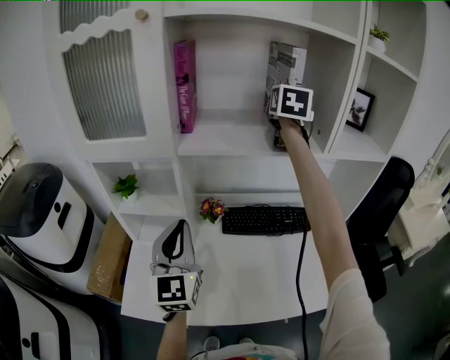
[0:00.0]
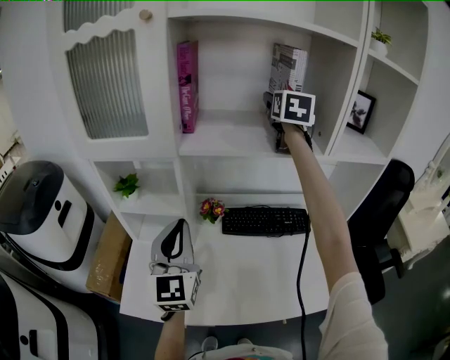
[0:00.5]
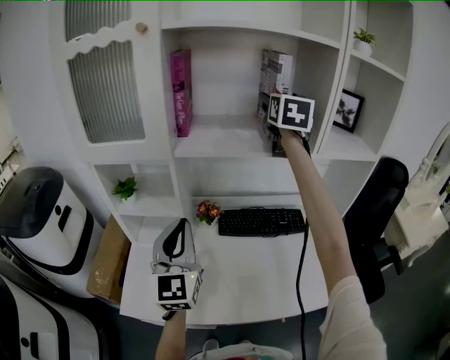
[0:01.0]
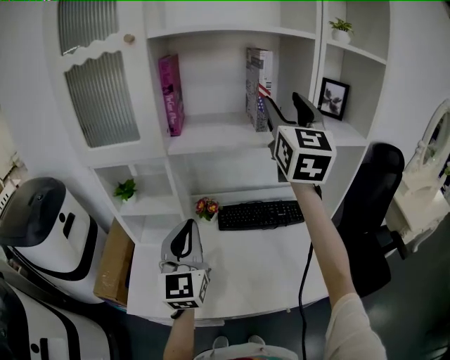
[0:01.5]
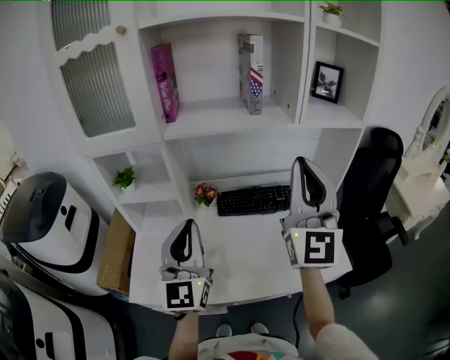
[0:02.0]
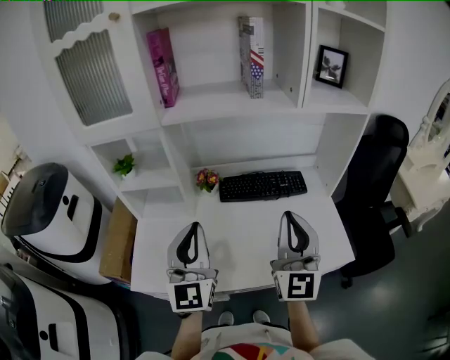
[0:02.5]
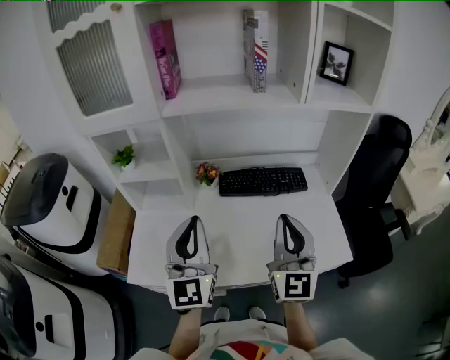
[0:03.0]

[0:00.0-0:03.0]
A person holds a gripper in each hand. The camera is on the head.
0:00.0 to 0:01.5: The left gripper changes place by about 5 cm, while the right gripper shifts some 20 cm backward, and turns by about 30 degrees.
0:01.5 to 0:03.0: The right gripper heads downward and backward, covering about 35 cm, and closes up; the left gripper shifts about 5 cm backward.

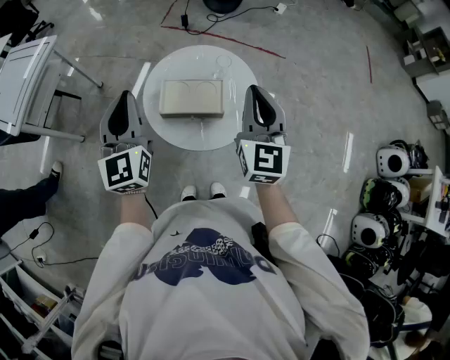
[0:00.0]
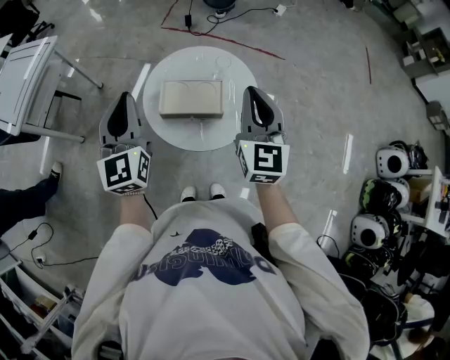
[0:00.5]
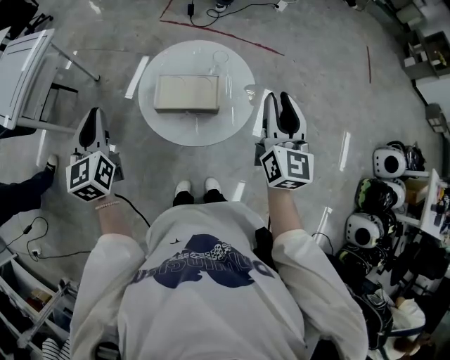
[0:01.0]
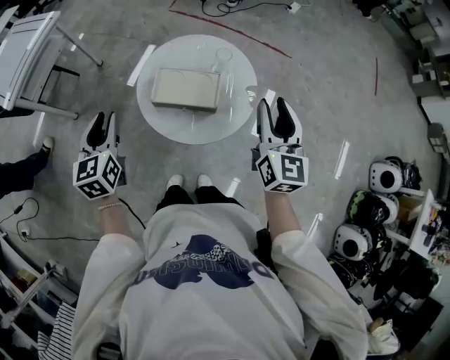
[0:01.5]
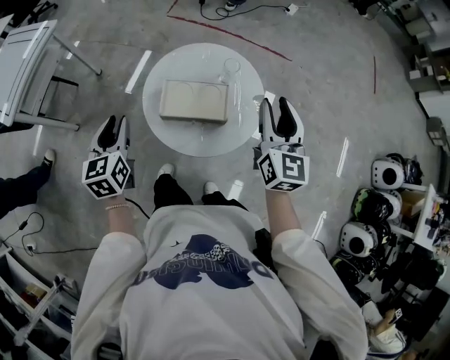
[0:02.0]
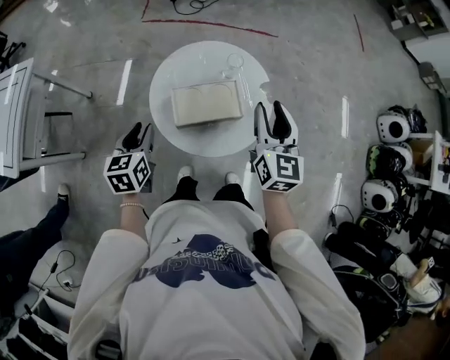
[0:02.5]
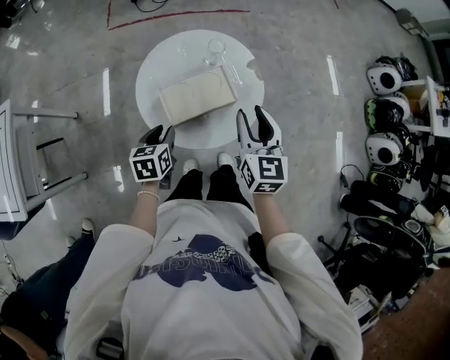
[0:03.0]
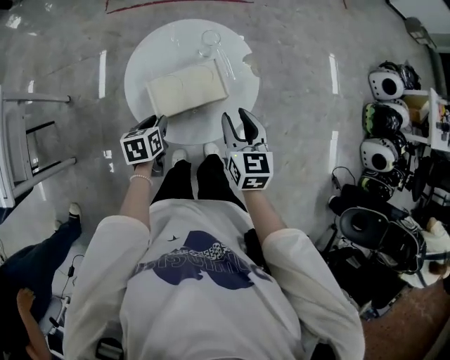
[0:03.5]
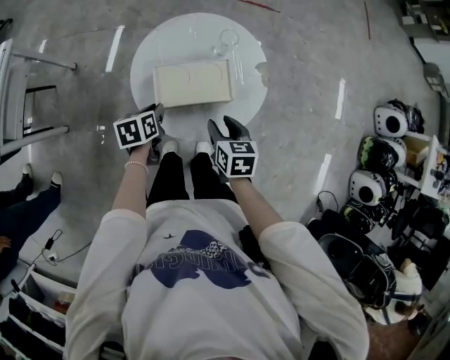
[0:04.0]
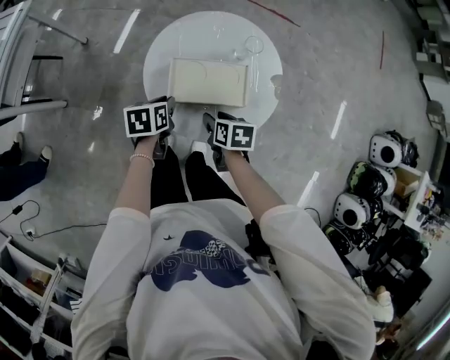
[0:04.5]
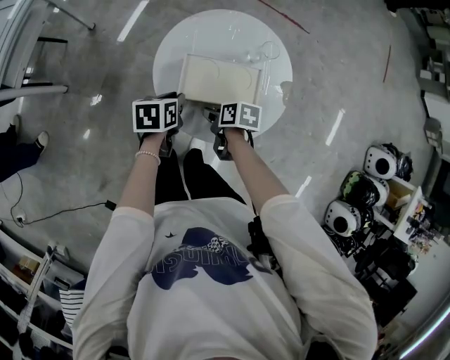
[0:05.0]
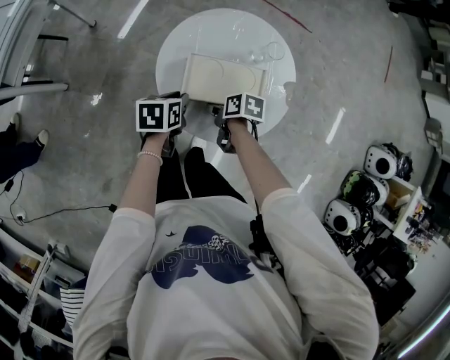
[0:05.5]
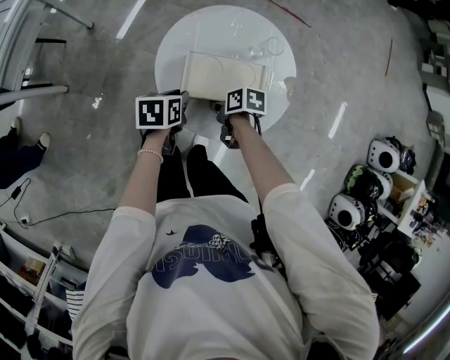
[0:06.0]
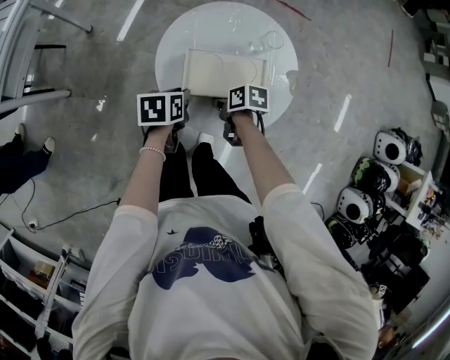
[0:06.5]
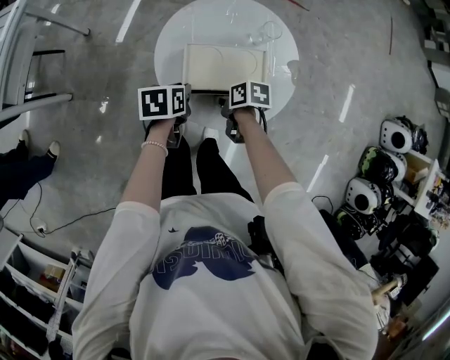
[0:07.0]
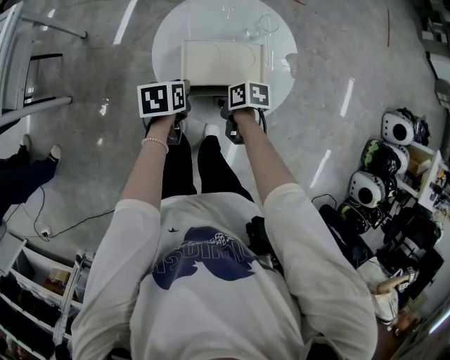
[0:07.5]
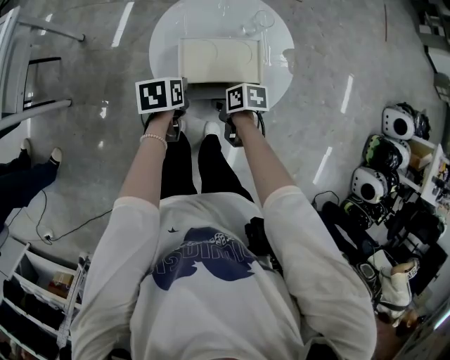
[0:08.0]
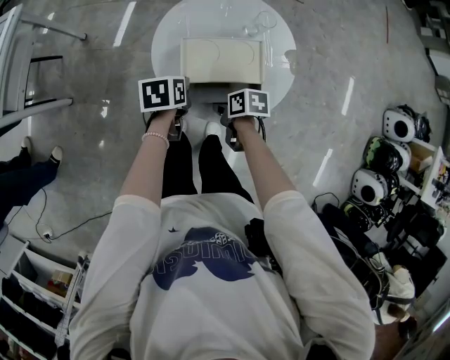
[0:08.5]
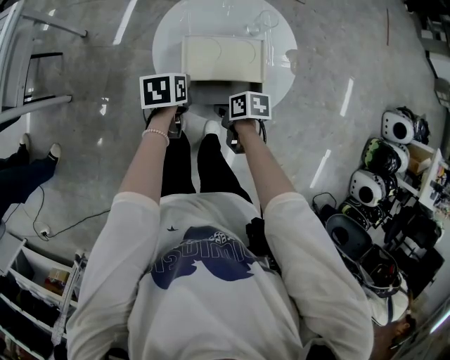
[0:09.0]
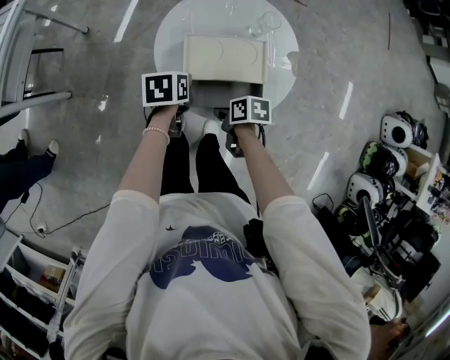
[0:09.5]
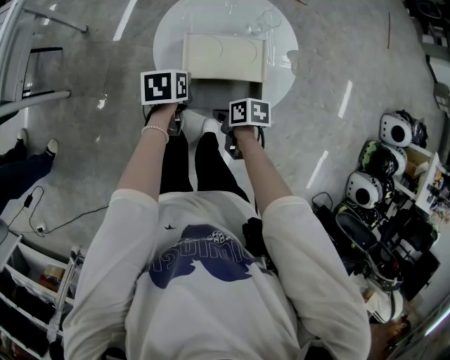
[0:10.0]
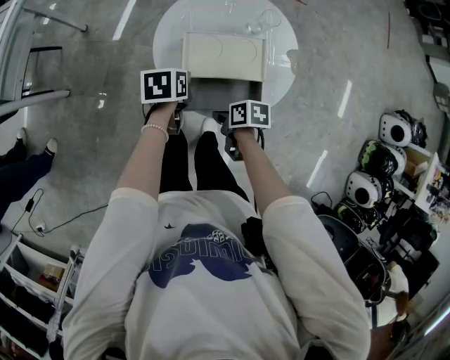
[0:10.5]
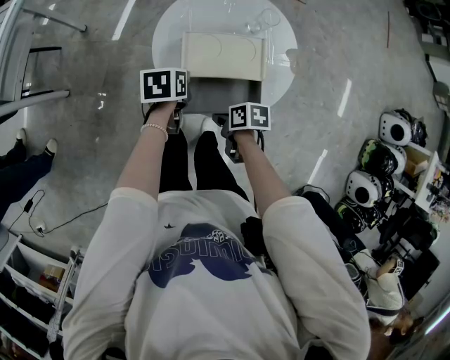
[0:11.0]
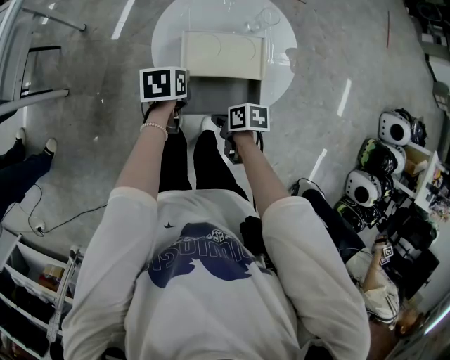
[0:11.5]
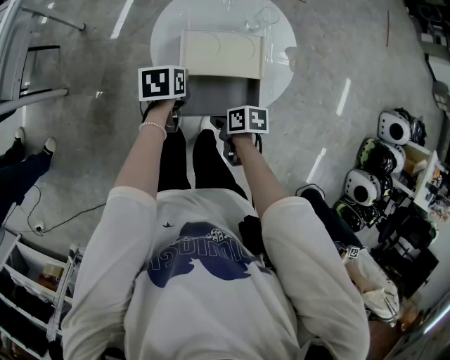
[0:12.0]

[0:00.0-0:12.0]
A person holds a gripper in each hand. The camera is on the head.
0:00.0 to 0:02.0: The left gripper heads downward and to the left, covering some 15 cm, rotates roughly 30 degrees, and opens. Meanwhile the right gripper shifts by roughly 5 cm, and opens up.
0:02.0 to 0:04.0: The grippers both shift downward by approximately 25 cm. The left gripper swivels about 40 degrees, while the right gripper points its fingers approximately 40 degrees further downward.
0:04.0 to 0:06.0: The right gripper moves downward, roughly 10 cm, changes its angle by approximately 40 degrees, and closes its fingers.
0:06.0 to 0:08.0: The grippers make only small movements.
0:08.0 to 0:10.0: The grippers make only small movements.
0:10.0 to 0:12.0: The grippers stay close to where they were, moving slightly.

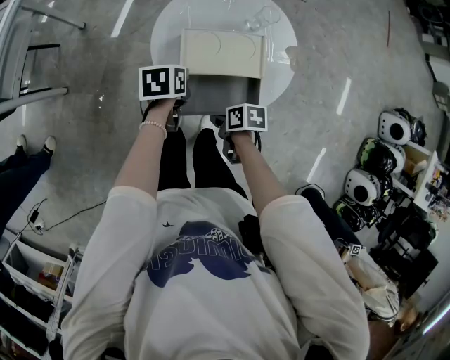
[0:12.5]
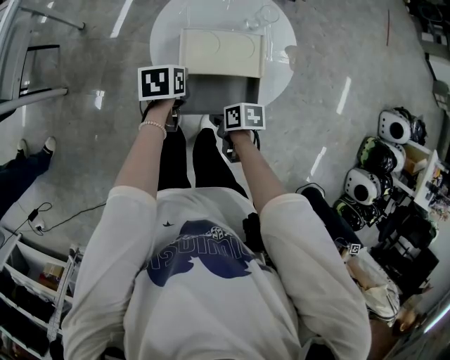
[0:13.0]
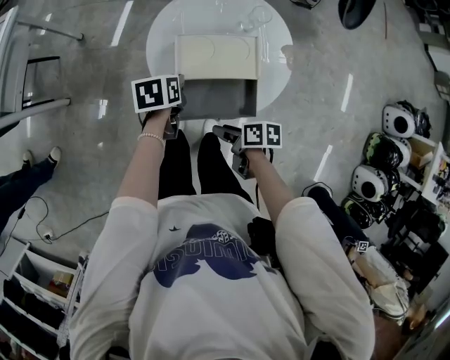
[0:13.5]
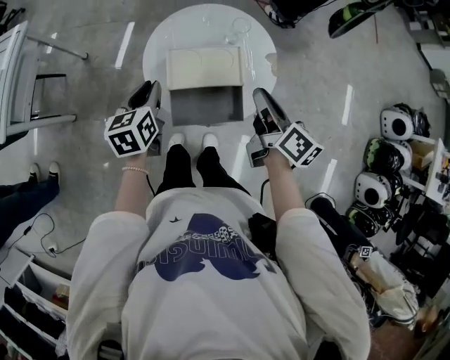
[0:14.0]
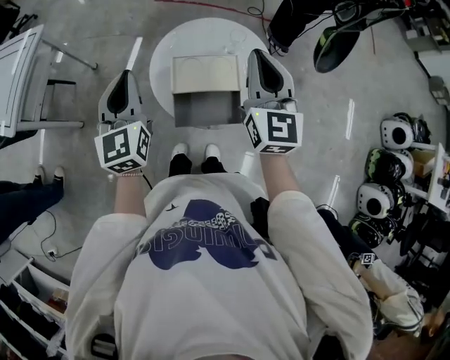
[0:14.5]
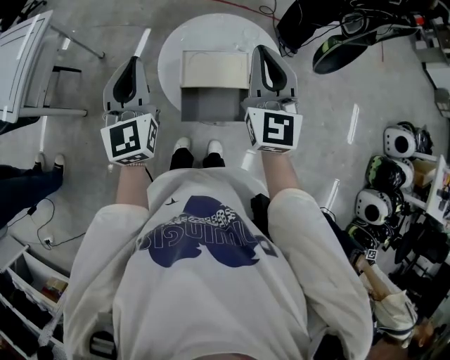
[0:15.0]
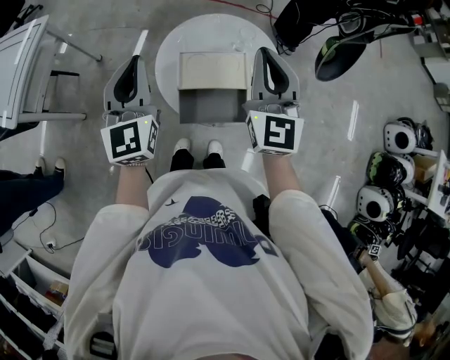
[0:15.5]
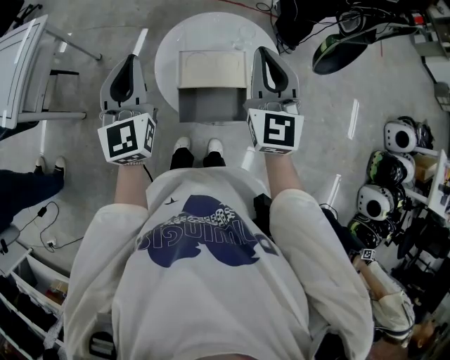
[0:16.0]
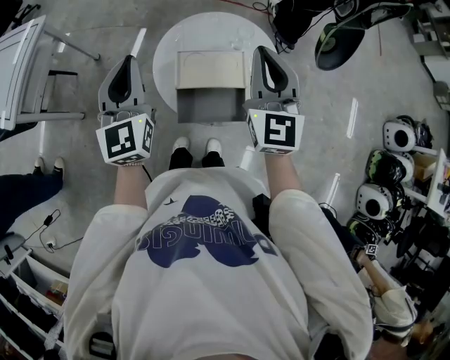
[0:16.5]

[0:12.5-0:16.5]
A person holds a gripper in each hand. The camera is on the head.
0:12.5 to 0:14.5: Both grippers move upward, some 35 cm. The right gripper tips its fingers upward by roughly 60 degrees, and opens, then closes once more. Meanwhile the left gripper tilts its fingers approximately 50 degrees upward.
0:14.5 to 0:16.5: The grippers move only a little.

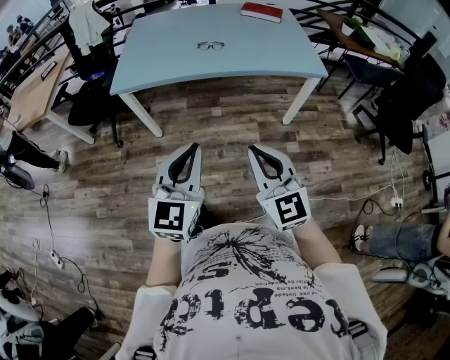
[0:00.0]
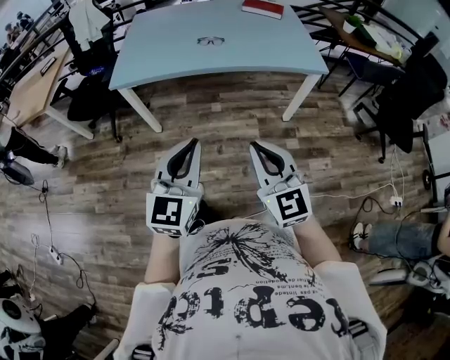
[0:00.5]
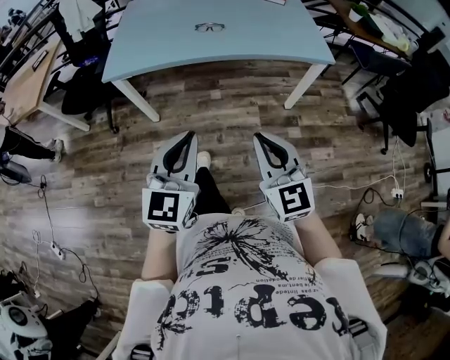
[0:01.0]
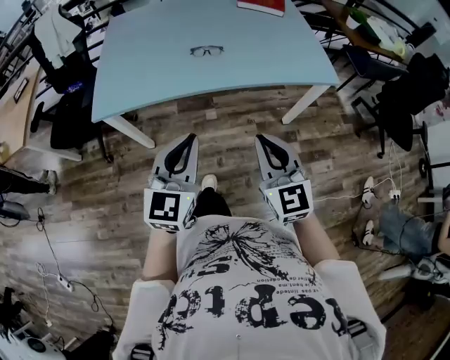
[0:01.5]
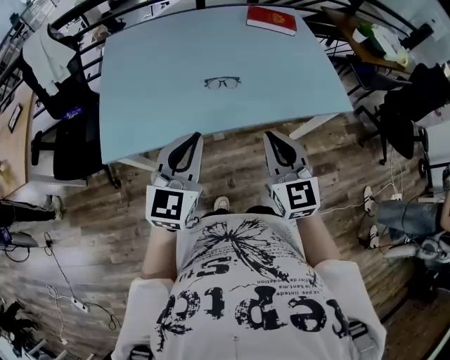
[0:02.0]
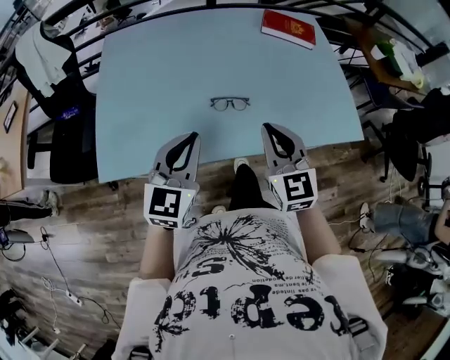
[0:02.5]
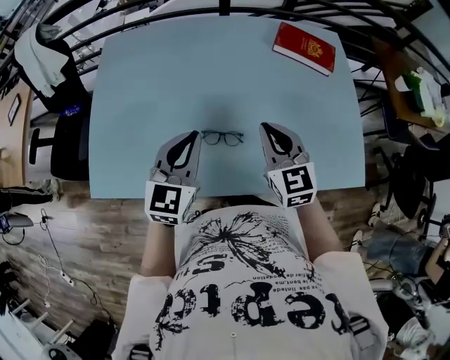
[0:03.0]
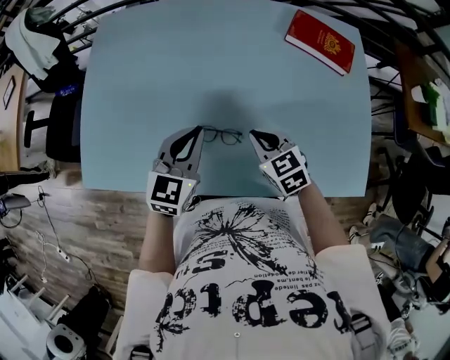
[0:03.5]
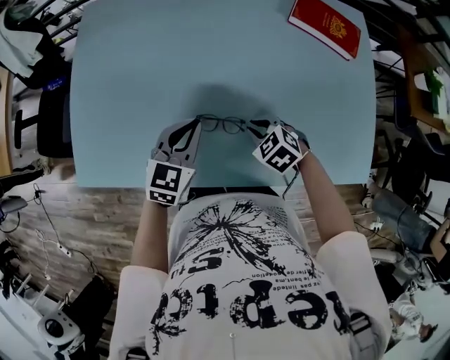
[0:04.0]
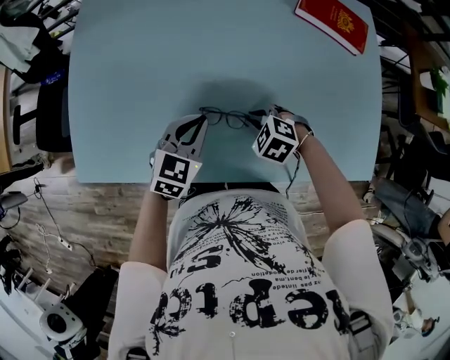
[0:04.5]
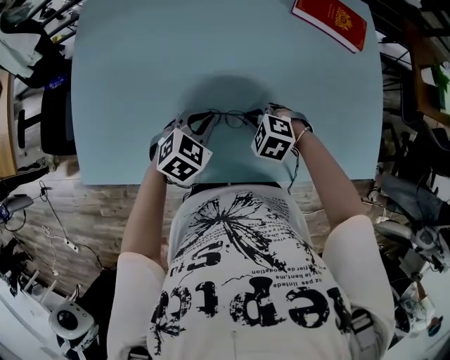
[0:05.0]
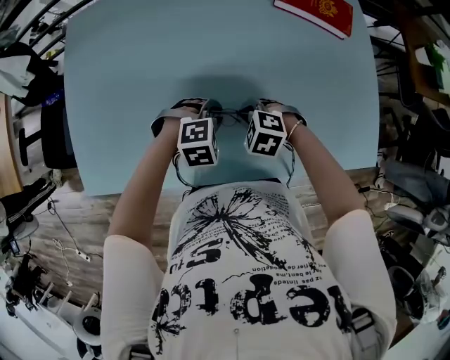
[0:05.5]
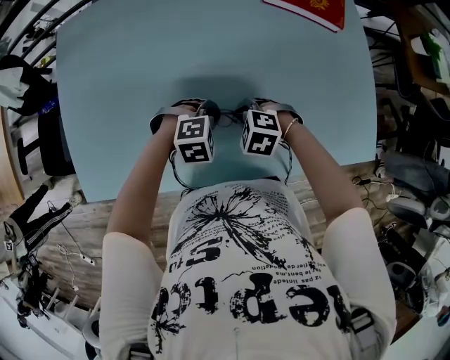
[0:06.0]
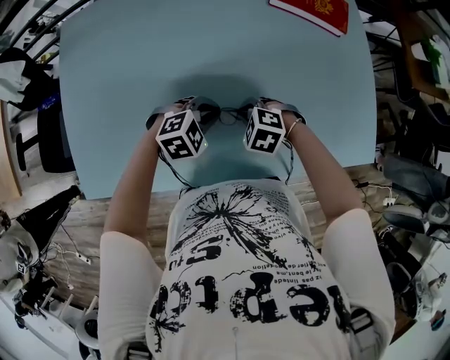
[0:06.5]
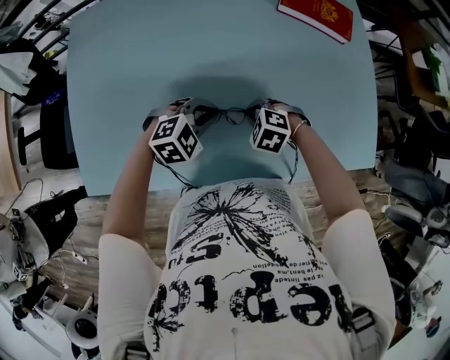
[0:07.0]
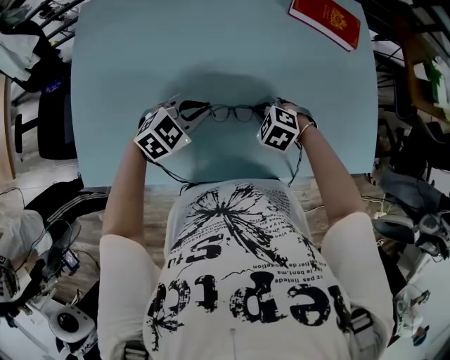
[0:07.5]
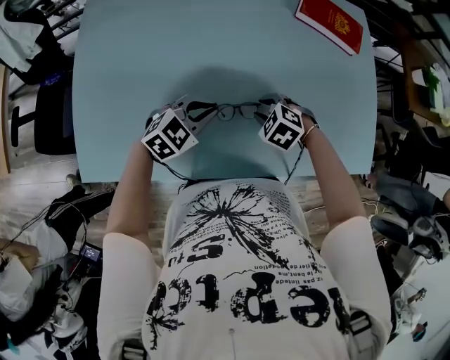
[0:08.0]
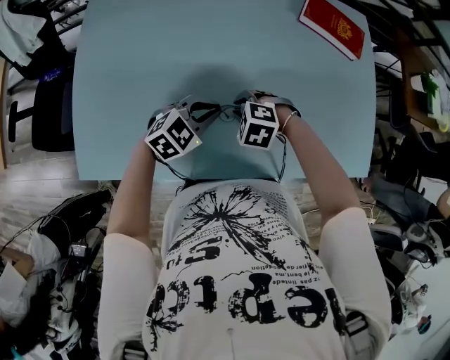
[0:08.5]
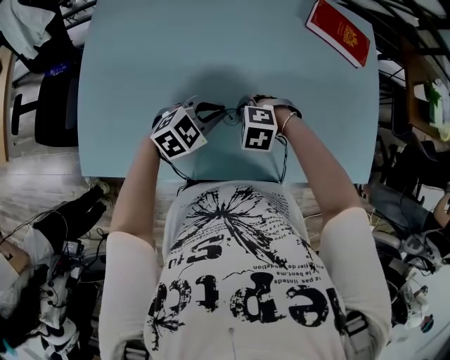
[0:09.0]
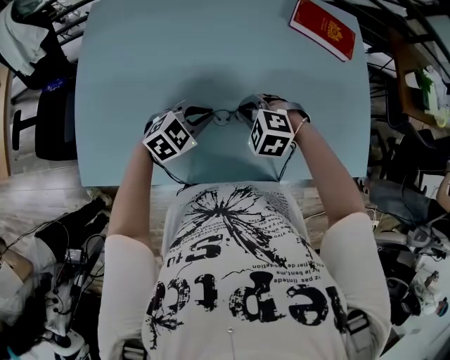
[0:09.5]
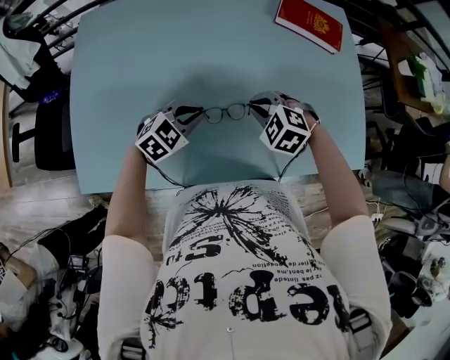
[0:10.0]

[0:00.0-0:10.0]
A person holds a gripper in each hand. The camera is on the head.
0:00.0 to 0:02.0: The two grippers travel together, forward, about 50 cm.
0:02.0 to 0:04.0: The right gripper moves roughly 50 cm, and tilts its fingers some 50 degrees downward. Meanwhile the left gripper ends up approximately 40 cm from where it was, and swivels roughly 20 degrees.
0:04.0 to 0:06.0: The left gripper shifts about 10 cm downward, and points its fingers roughly 40 degrees further downward.
0:06.0 to 0:08.0: The left gripper moves some 10 cm, and rotates some 40 degrees; the right gripper opens.
0:08.0 to 0:10.0: The right gripper is displaced upward by approximately 5 cm, and closes its fingers.
